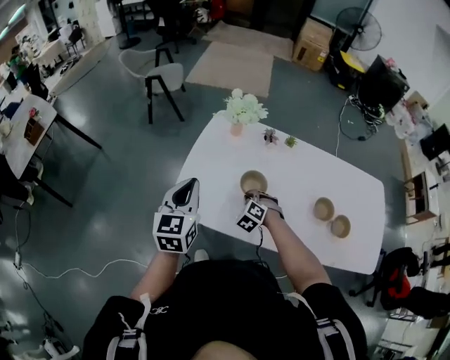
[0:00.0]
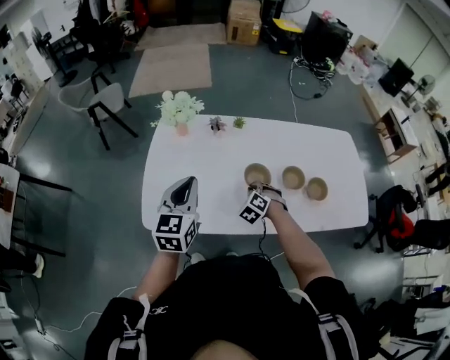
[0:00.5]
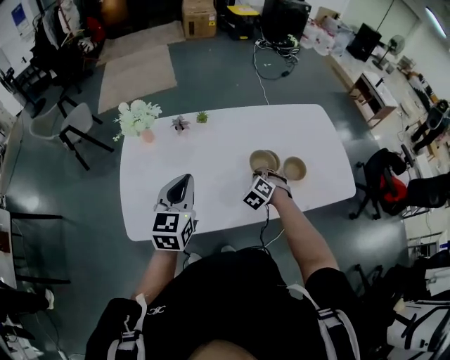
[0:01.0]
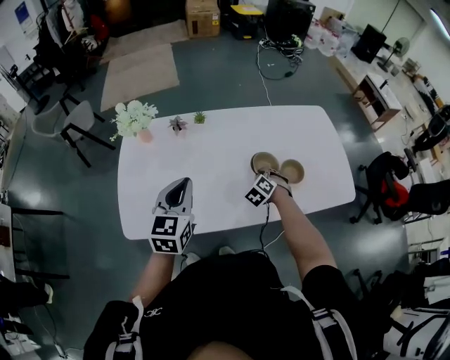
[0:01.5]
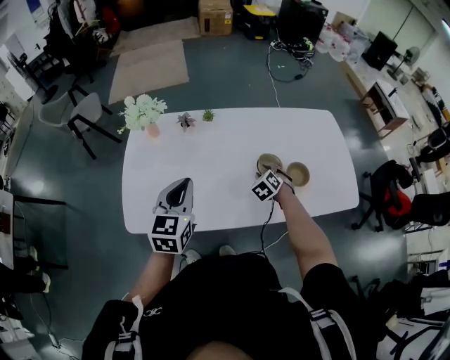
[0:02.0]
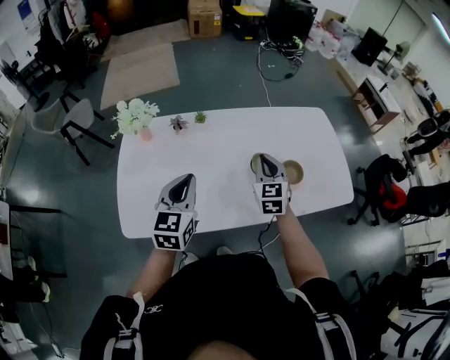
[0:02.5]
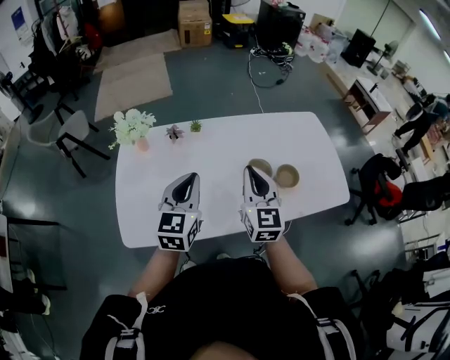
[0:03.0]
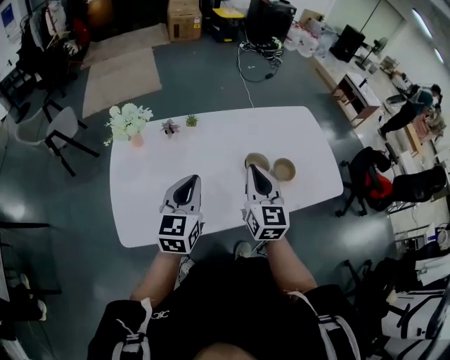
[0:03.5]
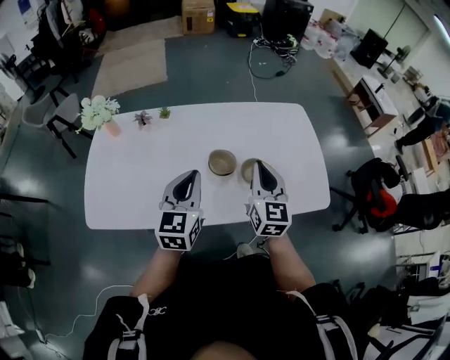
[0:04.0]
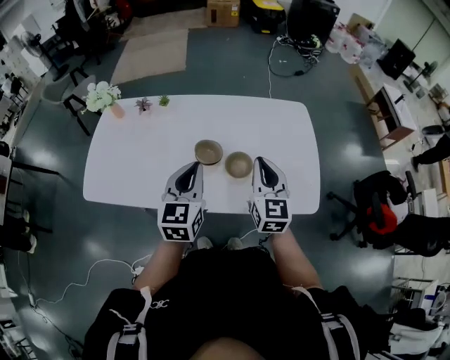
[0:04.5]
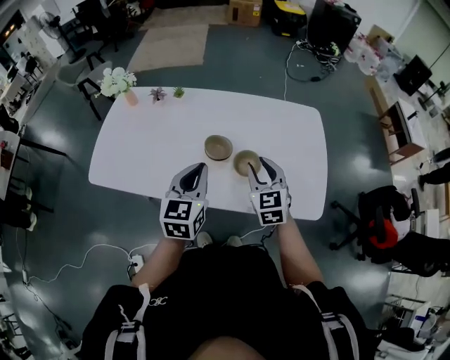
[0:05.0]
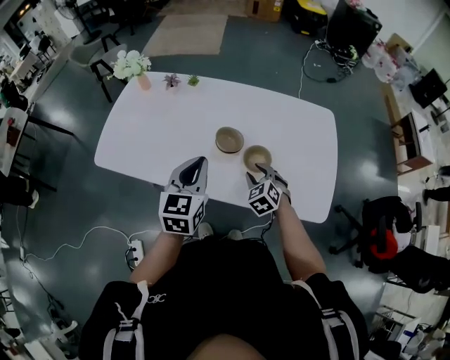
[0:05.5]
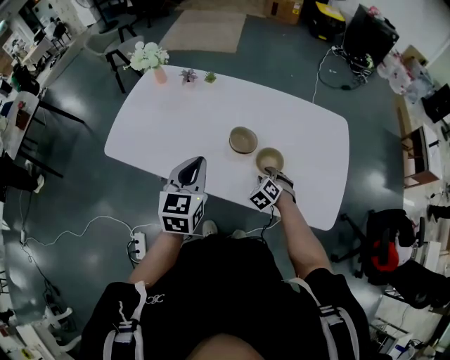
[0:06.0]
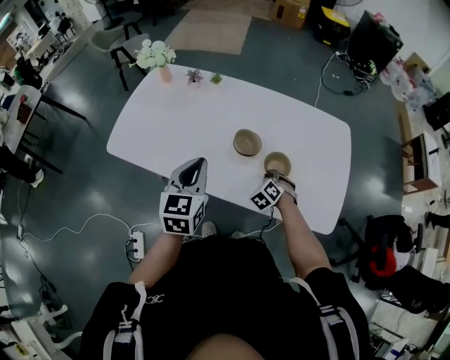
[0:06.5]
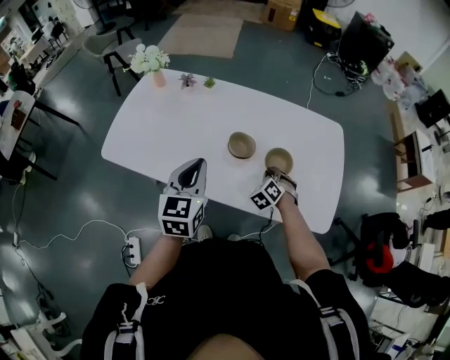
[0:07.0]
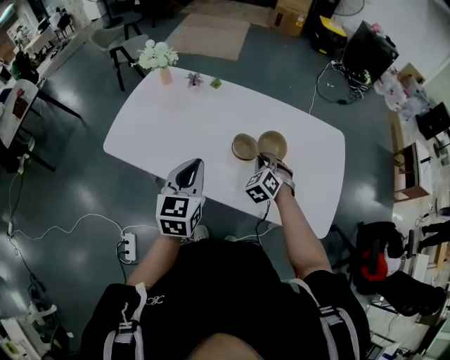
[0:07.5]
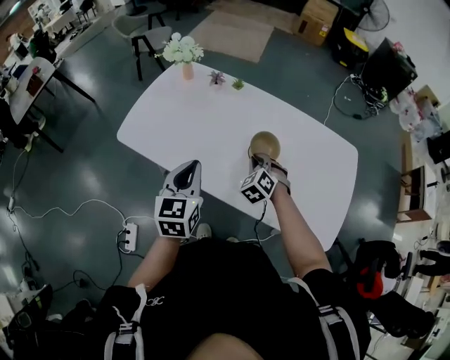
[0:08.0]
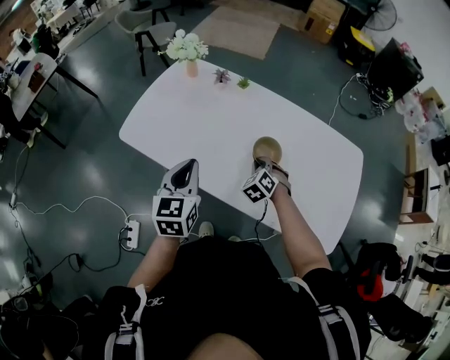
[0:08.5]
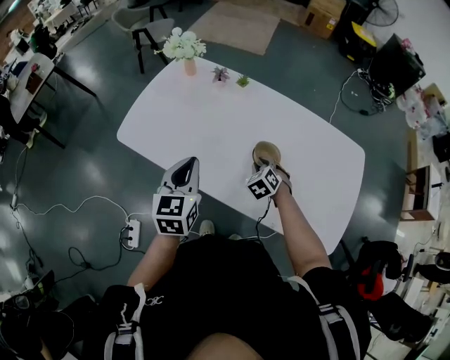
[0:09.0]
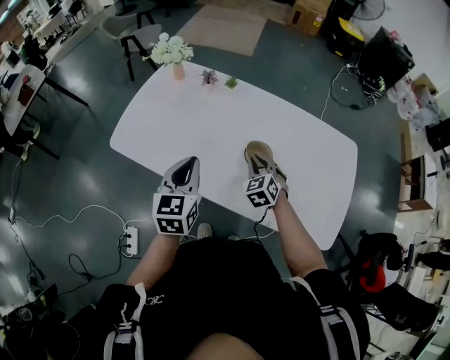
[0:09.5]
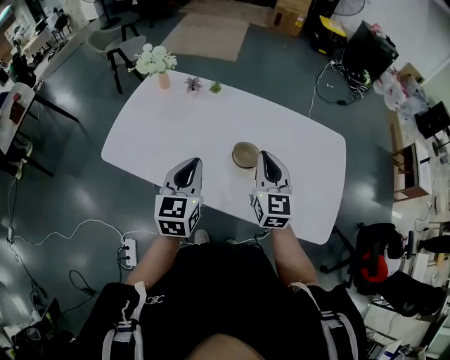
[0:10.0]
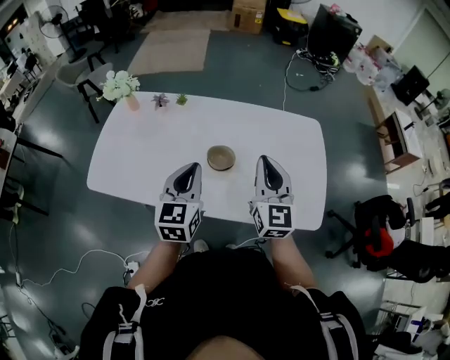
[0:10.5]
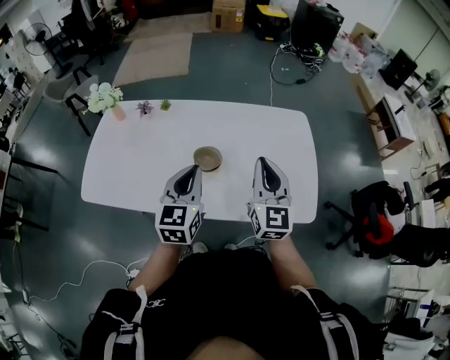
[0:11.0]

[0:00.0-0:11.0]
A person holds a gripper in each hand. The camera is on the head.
0:00.0 to 0:02.0: The left gripper changes place by approximately 25 cm, and turns by roughly 30 degrees. Meanwhile the right gripper changes place by approximately 35 cm, changes its angle by some 40 degrees, and opens its fingers.
0:02.0 to 0:03.5: The right gripper travels upward by about 25 cm, angles its fingers upward, by about 50 degrees, and closes.
0:03.5 to 0:05.5: The right gripper changes place by about 40 cm, tilts its fingers some 40 degrees downward, and opens up; the left gripper changes place by roughly 35 cm, and swivels about 30 degrees.
0:05.5 to 0:07.5: The right gripper shifts roughly 10 cm forward and to the left, travels downward and back again, about 10 cm each way, and closes, while the left gripper shifts some 10 cm to the left.
0:07.5 to 0:09.0: The right gripper travels to the left and downward by approximately 10 cm. The left gripper travels to the left by some 5 cm.
0:09.0 to 0:11.0: The right gripper is displaced upward and to the right by some 35 cm, tilts its fingers approximately 50 degrees upward, and closes; the left gripper shifts about 20 cm to the right, and turns by roughly 30 degrees.

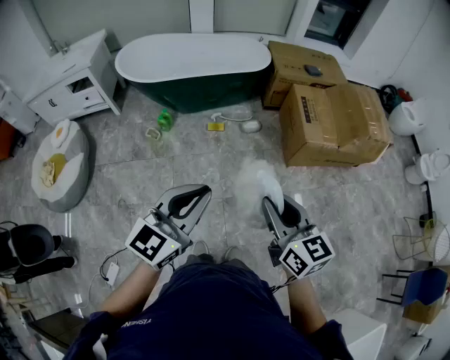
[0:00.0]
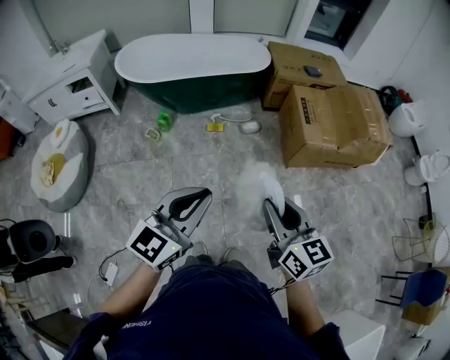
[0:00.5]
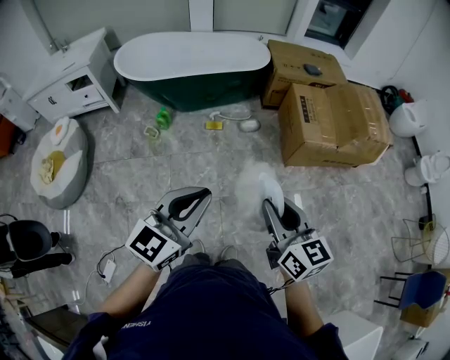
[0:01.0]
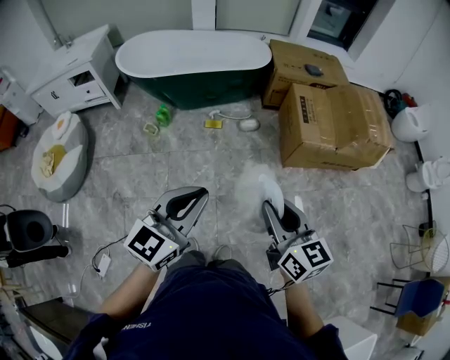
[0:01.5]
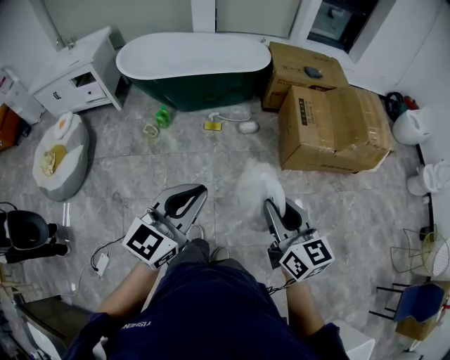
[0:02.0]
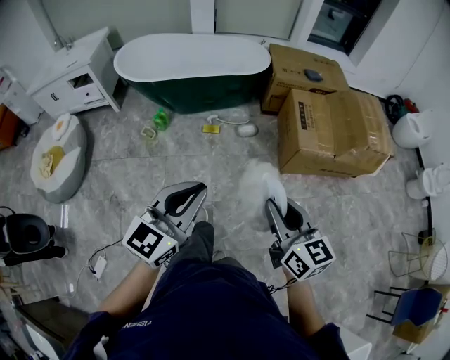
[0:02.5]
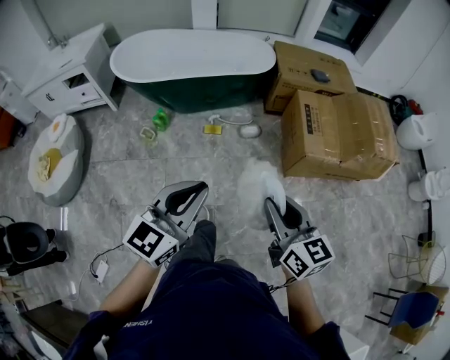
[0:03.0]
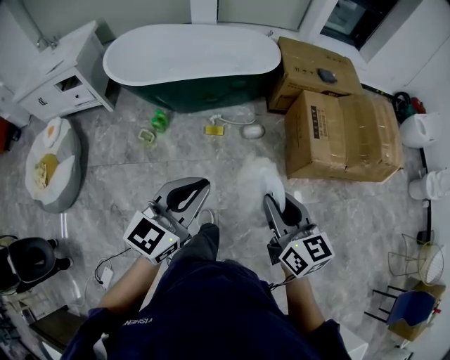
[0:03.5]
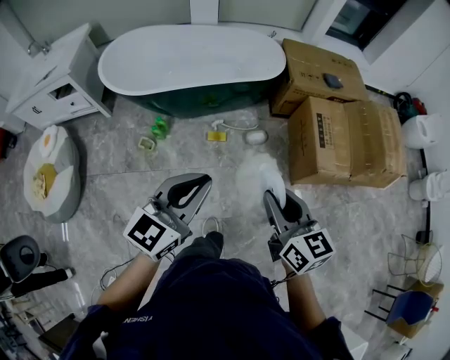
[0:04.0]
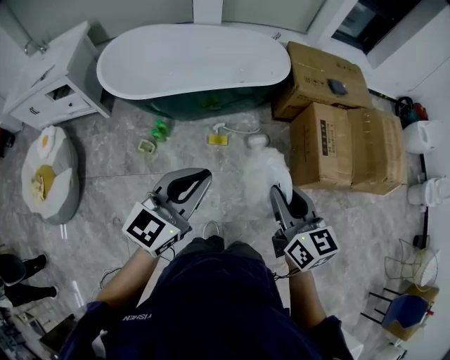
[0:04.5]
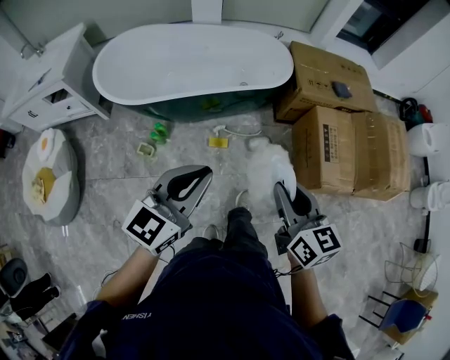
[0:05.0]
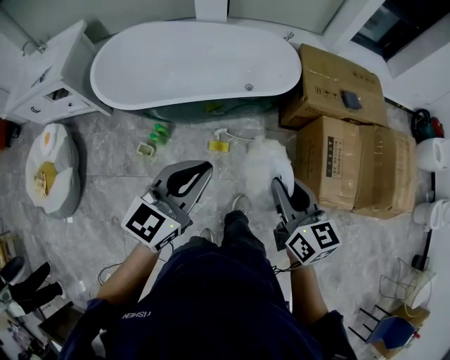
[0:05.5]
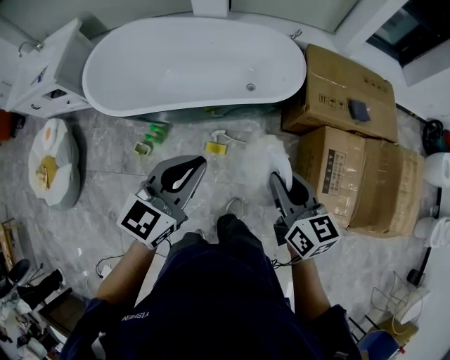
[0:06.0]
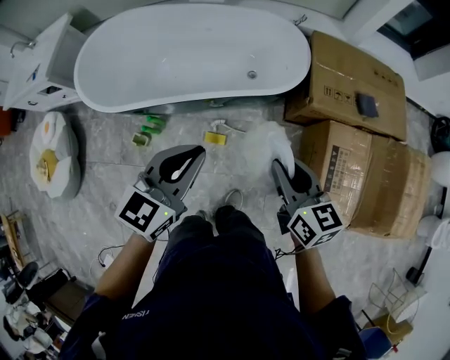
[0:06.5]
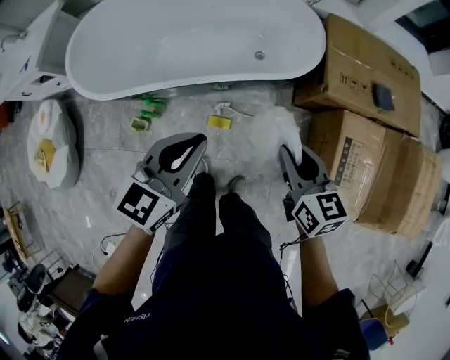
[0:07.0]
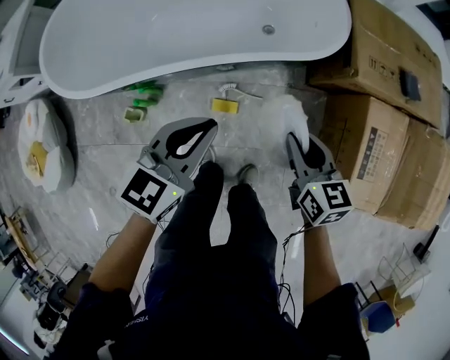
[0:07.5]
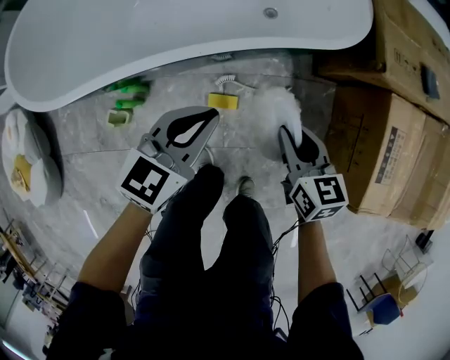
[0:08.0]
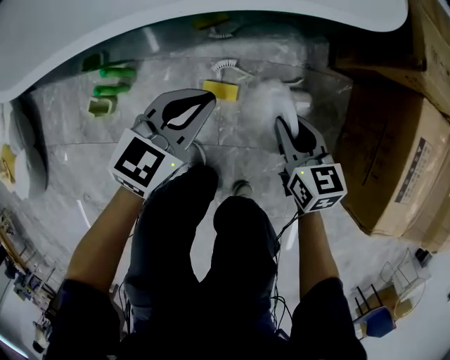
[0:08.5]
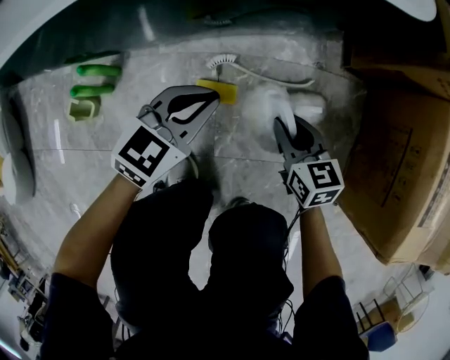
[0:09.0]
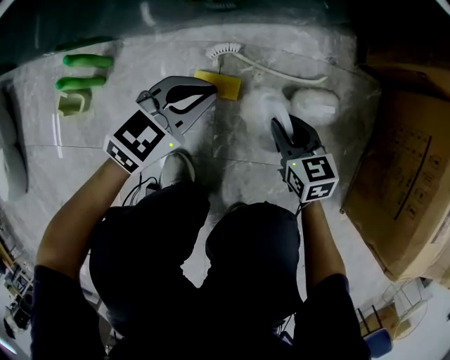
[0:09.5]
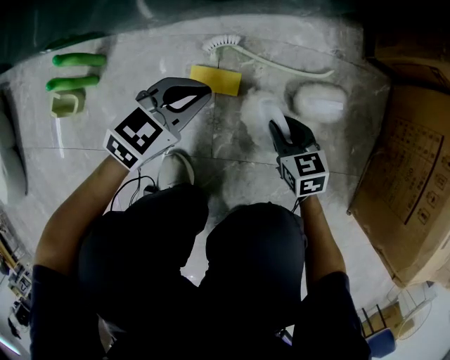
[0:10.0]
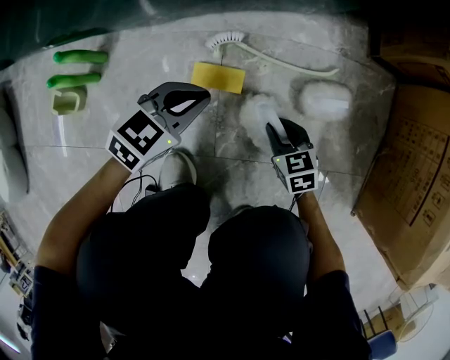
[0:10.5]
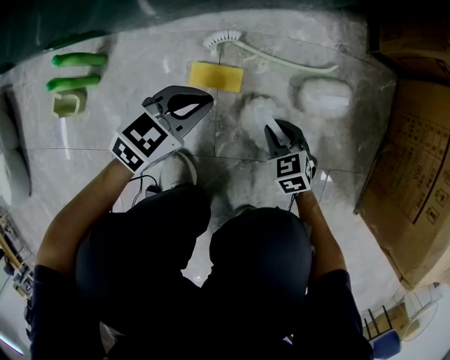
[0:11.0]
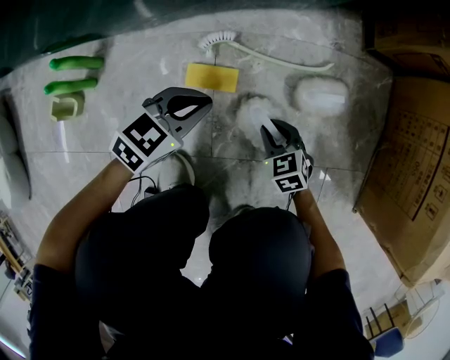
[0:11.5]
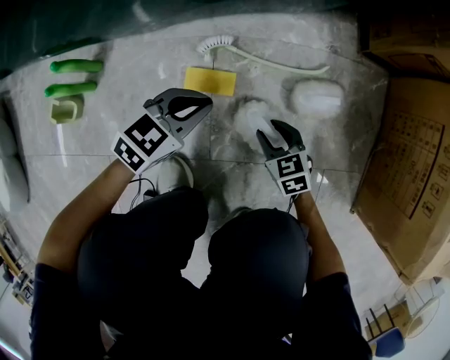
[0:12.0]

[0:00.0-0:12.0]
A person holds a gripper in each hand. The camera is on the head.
0:00.0 to 0:02.0: The two grippers go about 10 cm to the right.
0:02.0 to 0:04.0: The grippers both shift forward and to the left by some 35 cm.
0:04.0 to 0:06.0: The two grippers go roughly 35 cm forward.
0:06.0 to 0:08.0: Both grippers travel together downward, roughly 35 cm.
0:08.0 to 0:10.0: Both grippers travel together downward, some 50 cm.
0:10.0 to 0:12.0: The right gripper shifts by approximately 5 cm.

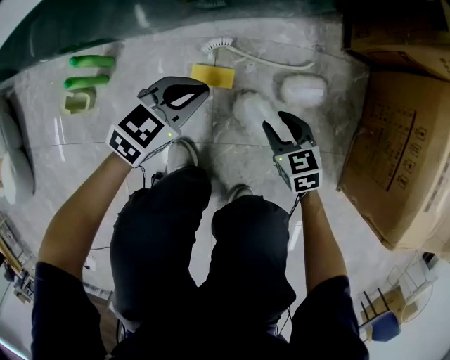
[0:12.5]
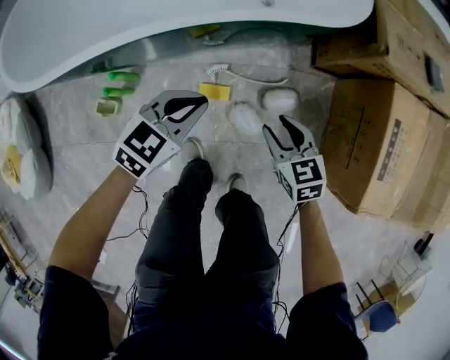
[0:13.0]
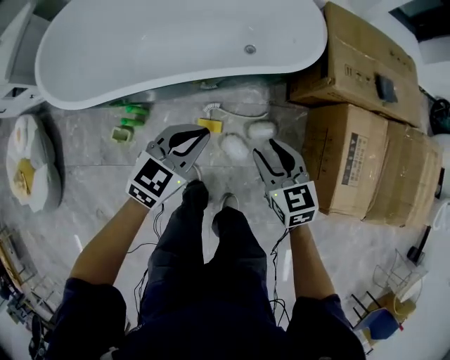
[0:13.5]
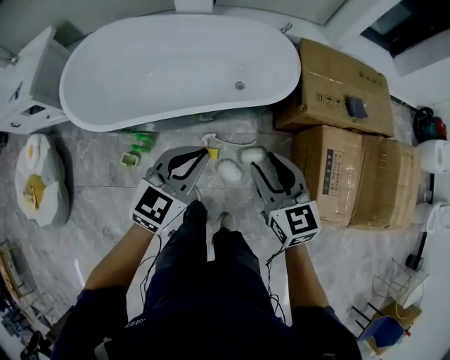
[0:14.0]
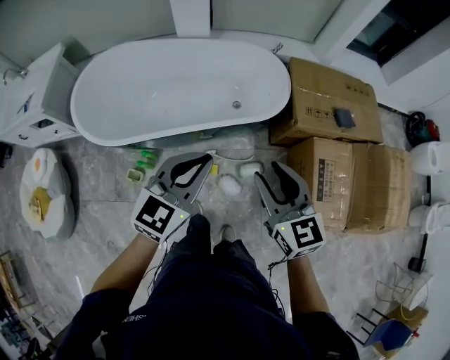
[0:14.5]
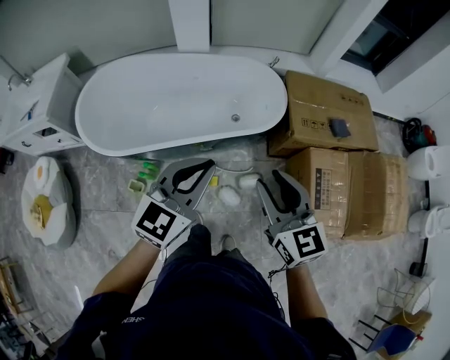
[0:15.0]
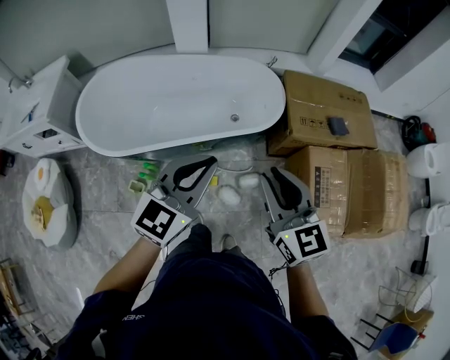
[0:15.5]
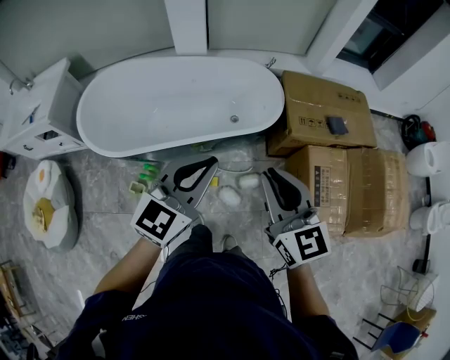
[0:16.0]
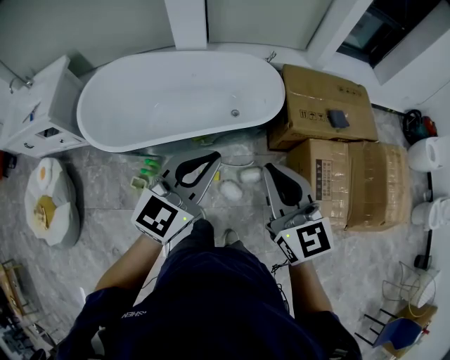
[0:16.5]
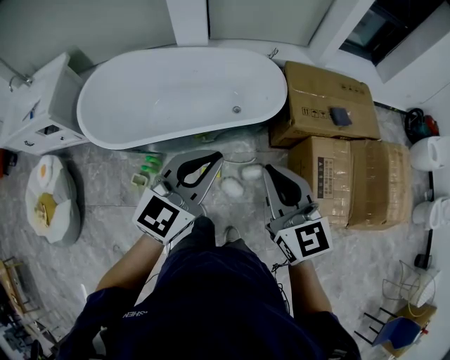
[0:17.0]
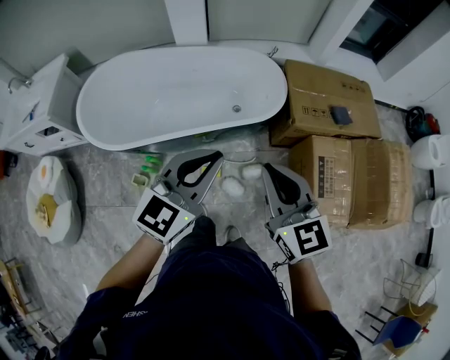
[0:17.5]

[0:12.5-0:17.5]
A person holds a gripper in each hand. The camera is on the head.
0:12.5 to 0:15.0: Both grippers move upward, about 80 cm. The right gripper points its fingers roughly 30 degrees further upward; the left gripper swivels roughly 30 degrees.
0:15.0 to 0:17.5: The right gripper closes its fingers.
